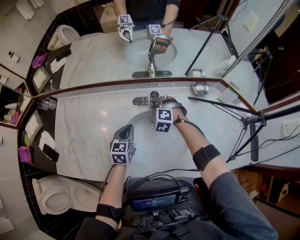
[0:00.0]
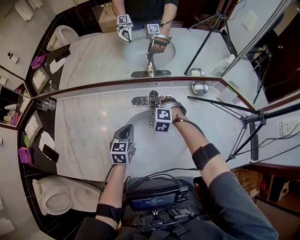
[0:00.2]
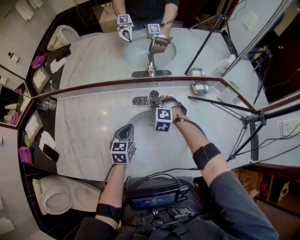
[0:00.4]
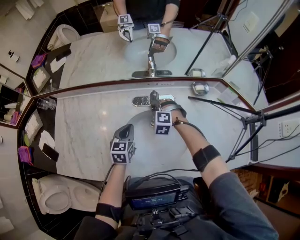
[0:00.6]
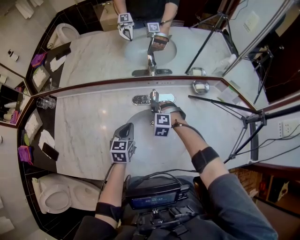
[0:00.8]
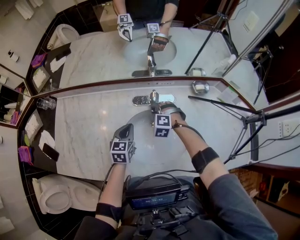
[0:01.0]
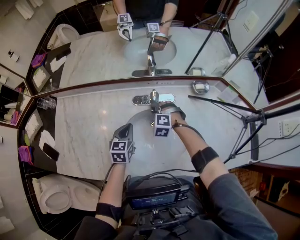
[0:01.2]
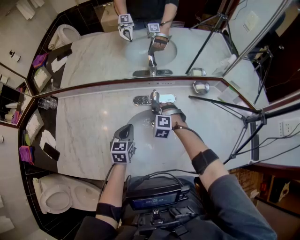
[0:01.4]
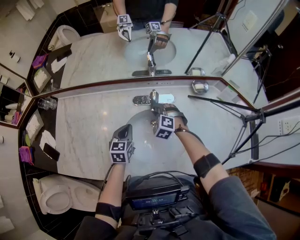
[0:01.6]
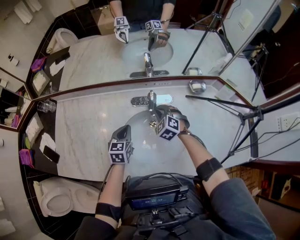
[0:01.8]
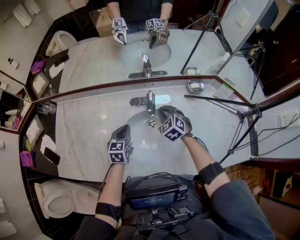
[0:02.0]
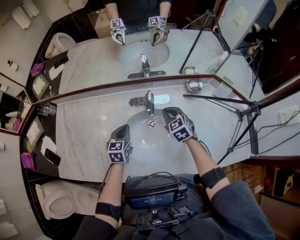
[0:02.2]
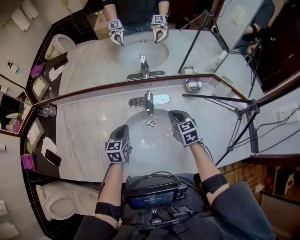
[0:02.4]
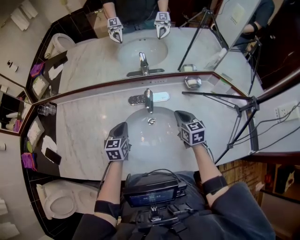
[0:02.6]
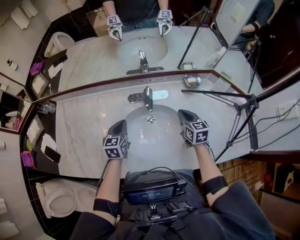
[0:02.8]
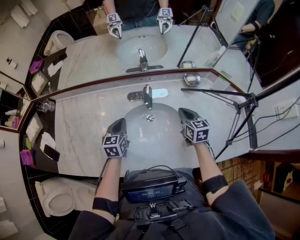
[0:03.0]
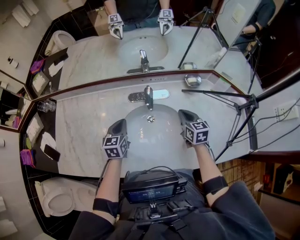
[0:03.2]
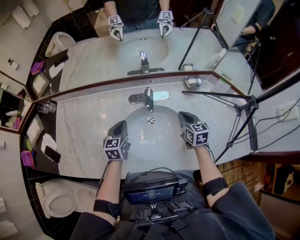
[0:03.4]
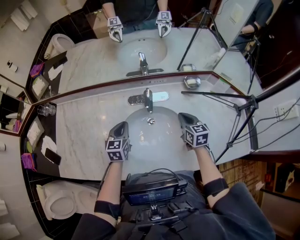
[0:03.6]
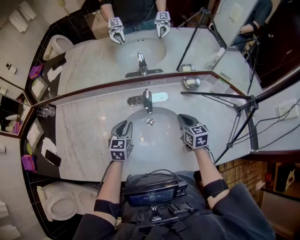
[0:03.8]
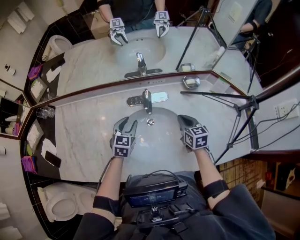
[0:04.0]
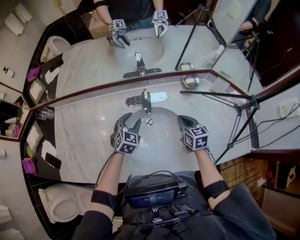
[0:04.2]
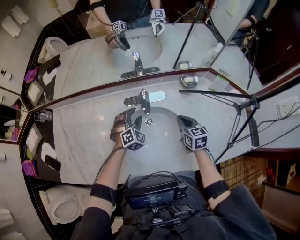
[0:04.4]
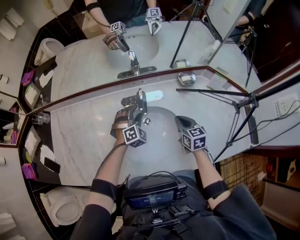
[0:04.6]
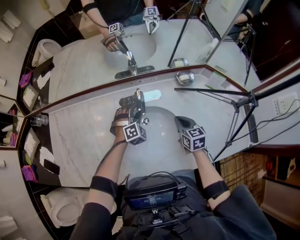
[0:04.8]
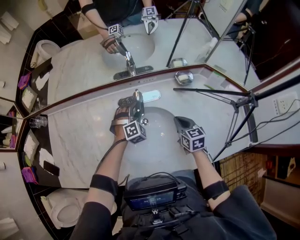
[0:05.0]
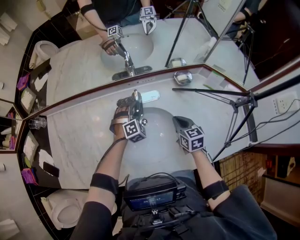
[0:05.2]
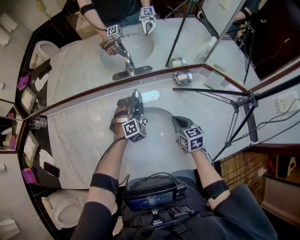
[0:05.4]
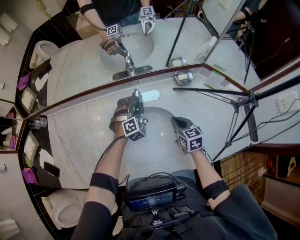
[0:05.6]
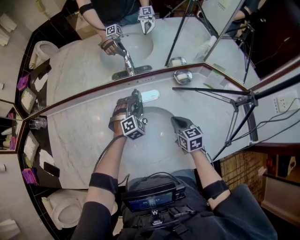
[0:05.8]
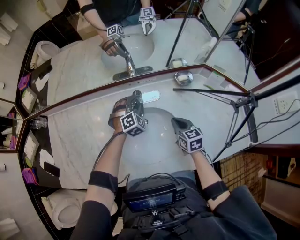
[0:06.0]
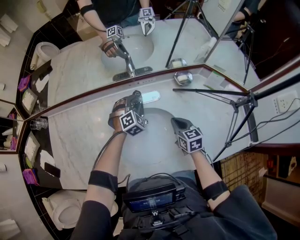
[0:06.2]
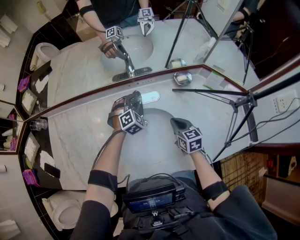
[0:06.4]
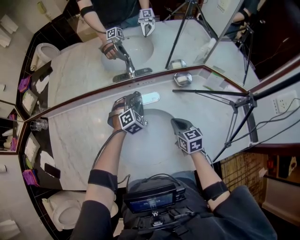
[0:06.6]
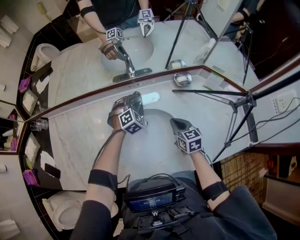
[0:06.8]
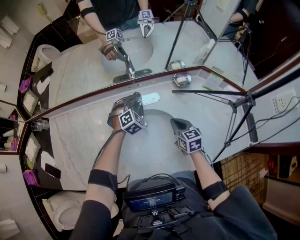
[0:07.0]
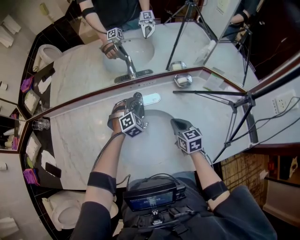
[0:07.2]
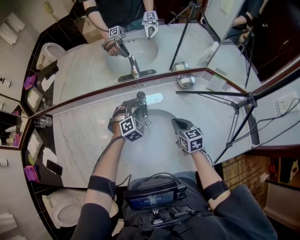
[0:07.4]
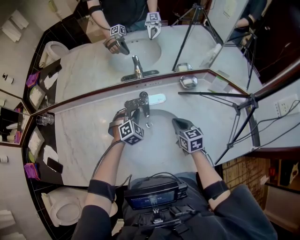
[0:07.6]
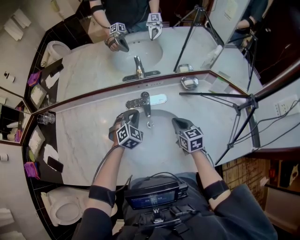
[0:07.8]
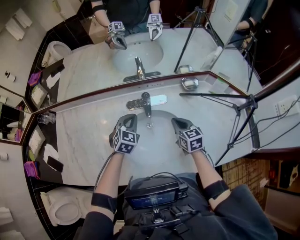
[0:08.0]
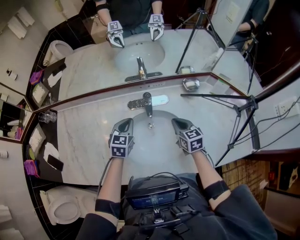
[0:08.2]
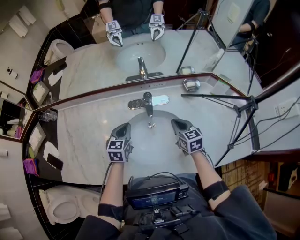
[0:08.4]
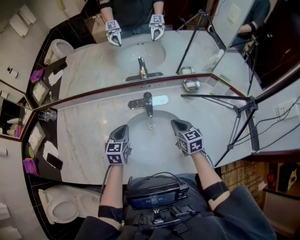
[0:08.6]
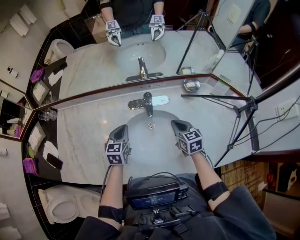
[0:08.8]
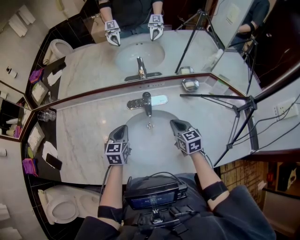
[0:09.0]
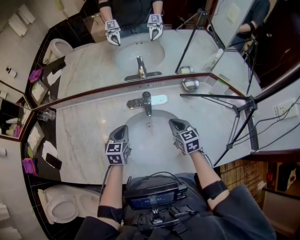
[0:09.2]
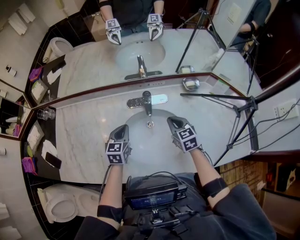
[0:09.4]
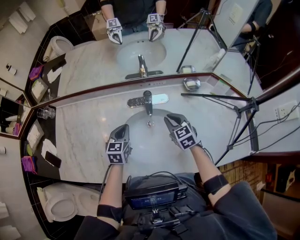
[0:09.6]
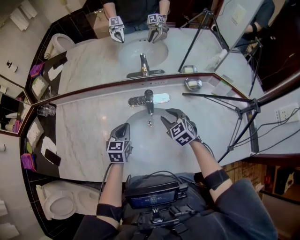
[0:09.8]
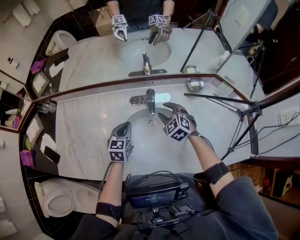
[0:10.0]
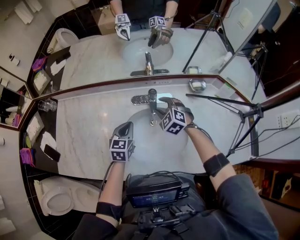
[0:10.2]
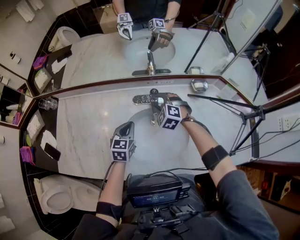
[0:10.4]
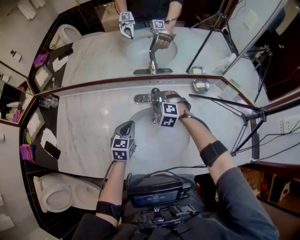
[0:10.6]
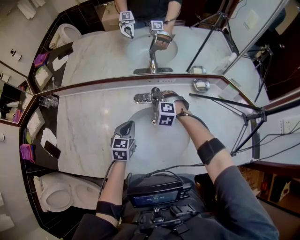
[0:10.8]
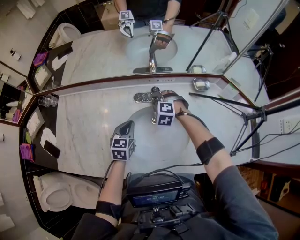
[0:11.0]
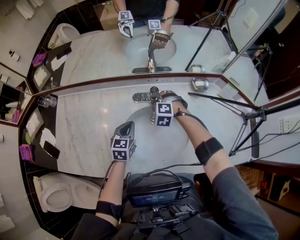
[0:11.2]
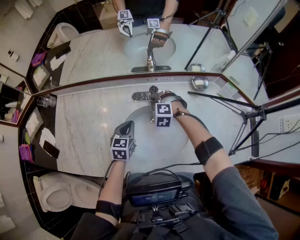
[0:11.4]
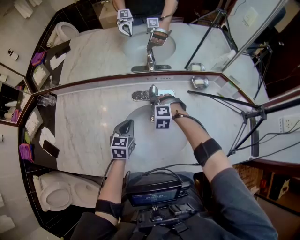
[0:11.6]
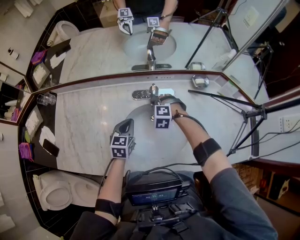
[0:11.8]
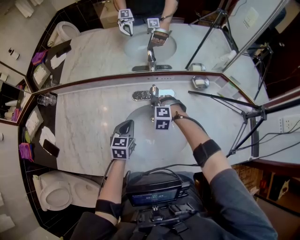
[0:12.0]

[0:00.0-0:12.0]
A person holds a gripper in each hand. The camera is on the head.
0:00.0 to 0:01.6: The grippers move only a little.
0:01.6 to 0:03.0: The right gripper goes some 20 cm to the right and backward, twists some 70 degrees clockwise, seen from behind, and closes.
0:03.0 to 0:04.4: The left gripper heads to the right and forward, covering about 10 cm, twists about 60 degrees clockwise, seen from behind, and opens.
0:04.4 to 0:06.0: The left gripper travels forward by about 5 cm.
0:06.0 to 0:07.6: The left gripper changes place by about 5 cm, and closes.
0:07.6 to 0:09.0: The left gripper moves to the left and backward, approximately 15 cm, and twists some 60 degrees counterclockwise, seen from behind.
0:09.0 to 0:10.4: The right gripper travels forward and to the left by roughly 15 cm, rolls counterclockwise, seen from behind, by approximately 60 degrees, and opens.
0:10.4 to 0:12.0: The right gripper moves downward, about 5 cm, and closes its fingers.

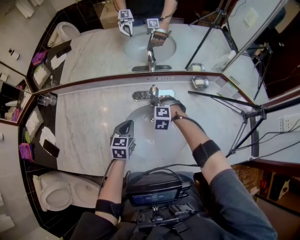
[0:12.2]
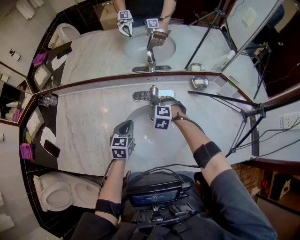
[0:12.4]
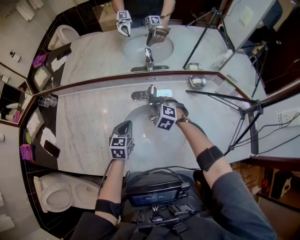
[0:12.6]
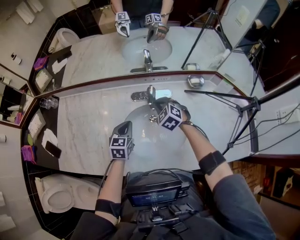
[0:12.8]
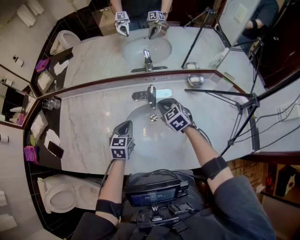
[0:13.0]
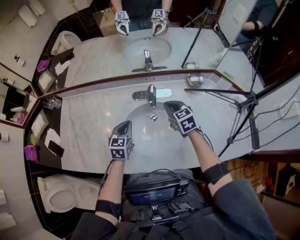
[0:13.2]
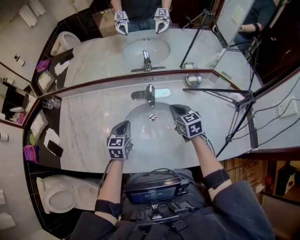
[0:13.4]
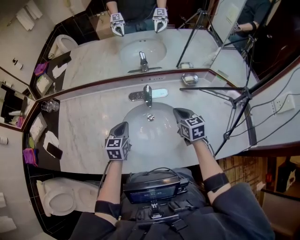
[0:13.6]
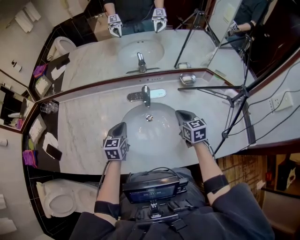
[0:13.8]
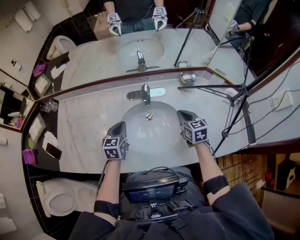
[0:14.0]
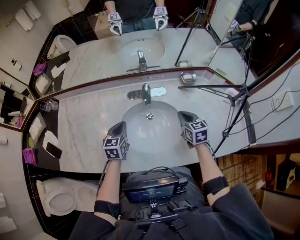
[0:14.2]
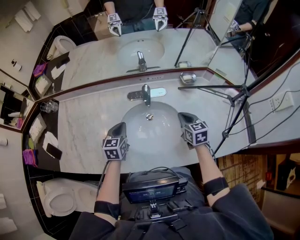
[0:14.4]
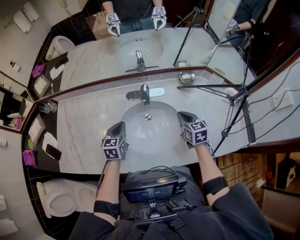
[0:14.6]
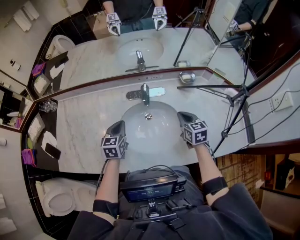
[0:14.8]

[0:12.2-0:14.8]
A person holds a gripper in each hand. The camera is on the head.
0:12.2 to 0:13.4: The right gripper heads upward, to the right and backward, covering roughly 15 cm, rolls clockwise, seen from behind, by roughly 70 degrees, and closes its fingers. Meanwhile the left gripper changes place by approximately 5 cm.
0:13.4 to 0:14.8: The right gripper goes about 10 cm to the right and backward.

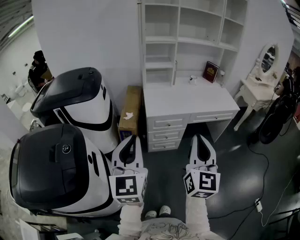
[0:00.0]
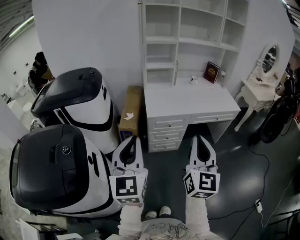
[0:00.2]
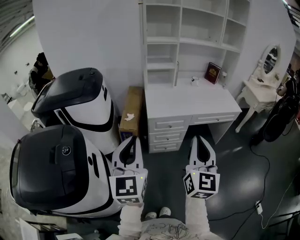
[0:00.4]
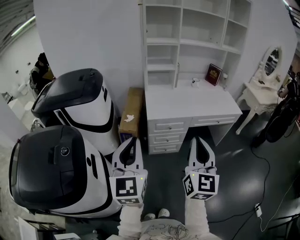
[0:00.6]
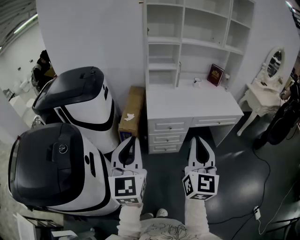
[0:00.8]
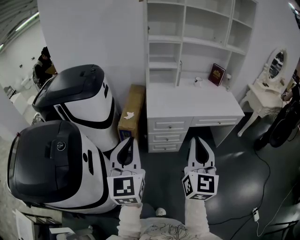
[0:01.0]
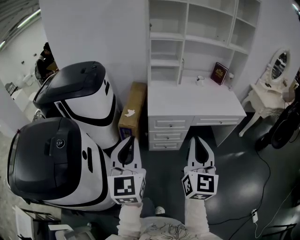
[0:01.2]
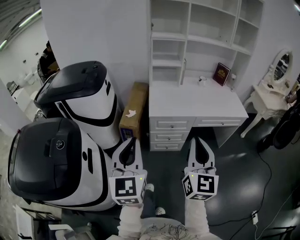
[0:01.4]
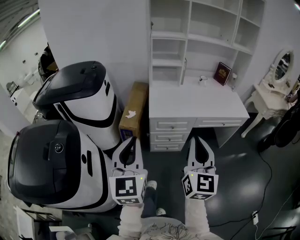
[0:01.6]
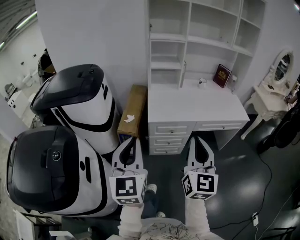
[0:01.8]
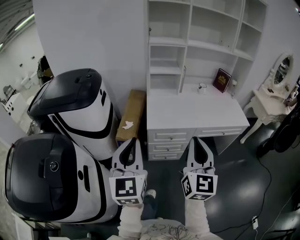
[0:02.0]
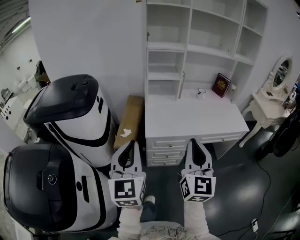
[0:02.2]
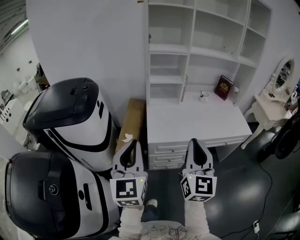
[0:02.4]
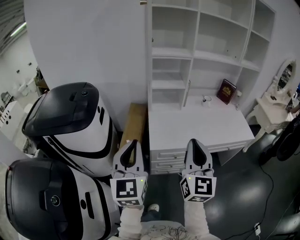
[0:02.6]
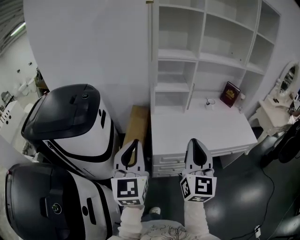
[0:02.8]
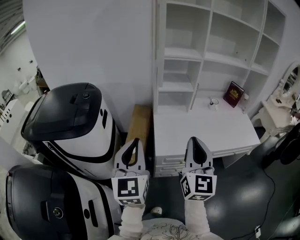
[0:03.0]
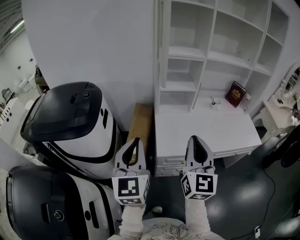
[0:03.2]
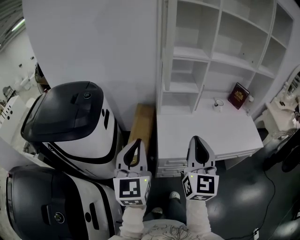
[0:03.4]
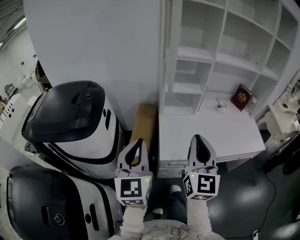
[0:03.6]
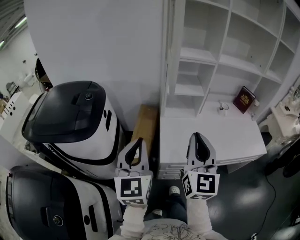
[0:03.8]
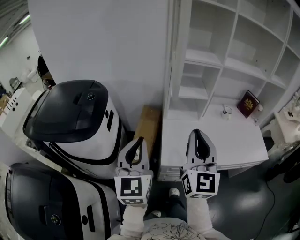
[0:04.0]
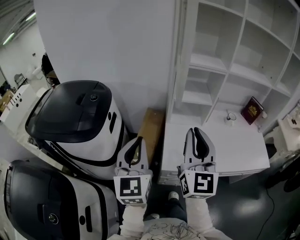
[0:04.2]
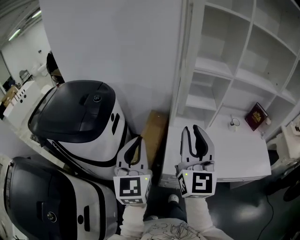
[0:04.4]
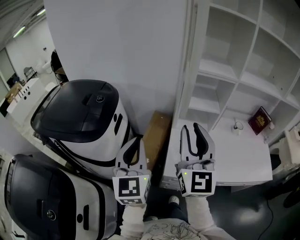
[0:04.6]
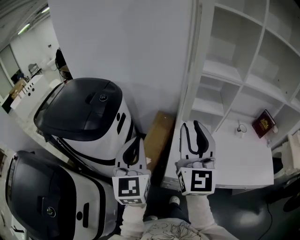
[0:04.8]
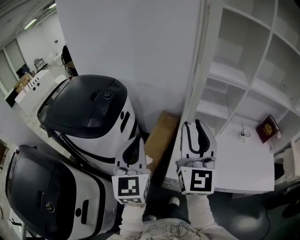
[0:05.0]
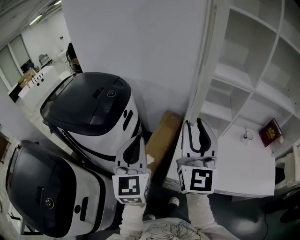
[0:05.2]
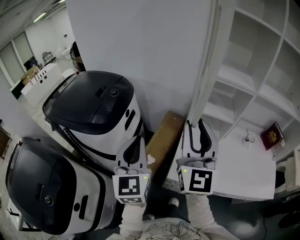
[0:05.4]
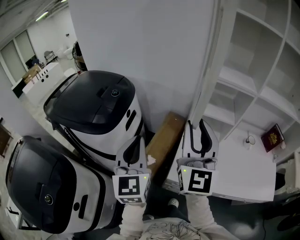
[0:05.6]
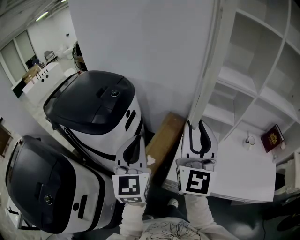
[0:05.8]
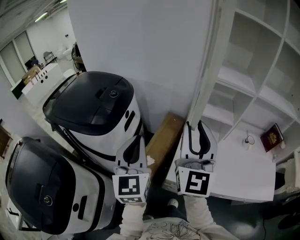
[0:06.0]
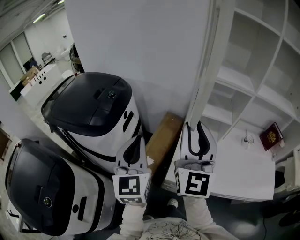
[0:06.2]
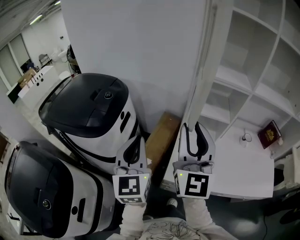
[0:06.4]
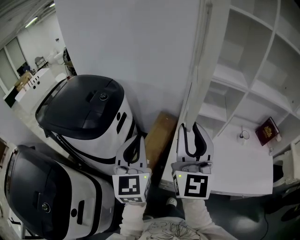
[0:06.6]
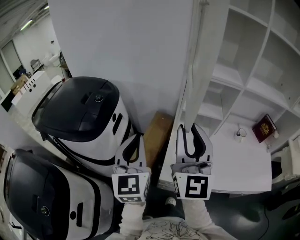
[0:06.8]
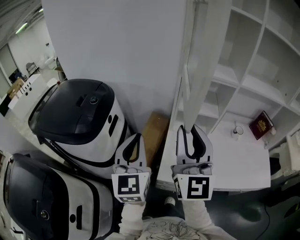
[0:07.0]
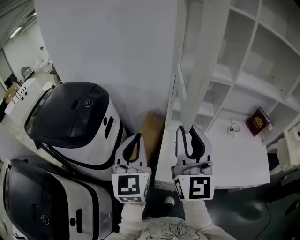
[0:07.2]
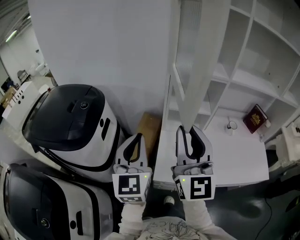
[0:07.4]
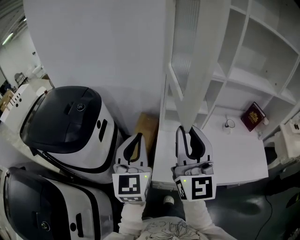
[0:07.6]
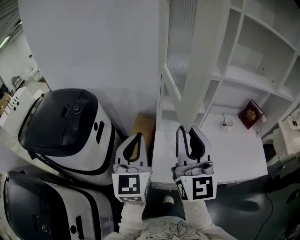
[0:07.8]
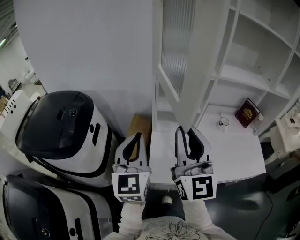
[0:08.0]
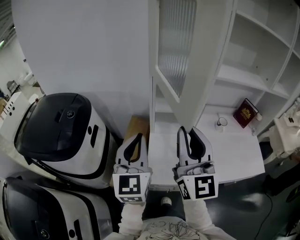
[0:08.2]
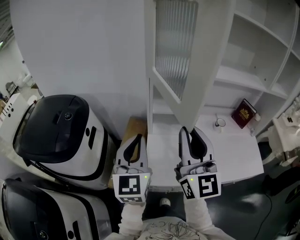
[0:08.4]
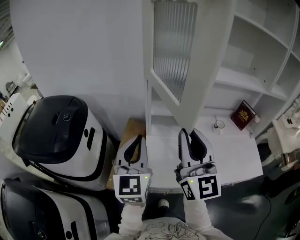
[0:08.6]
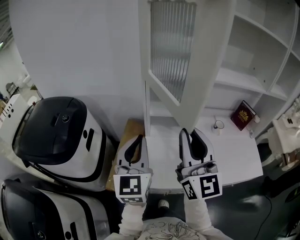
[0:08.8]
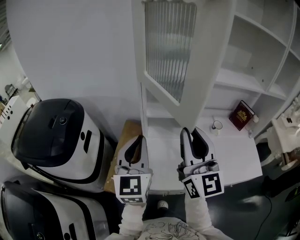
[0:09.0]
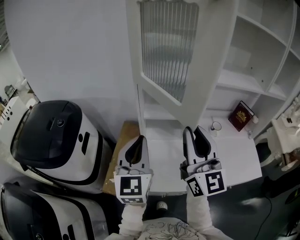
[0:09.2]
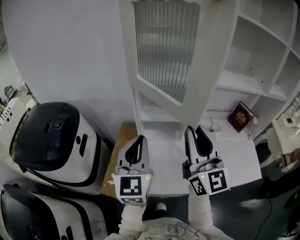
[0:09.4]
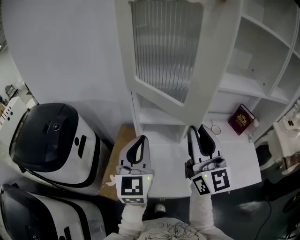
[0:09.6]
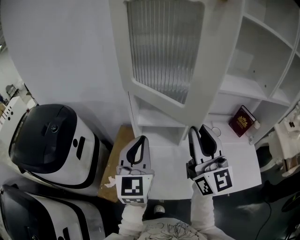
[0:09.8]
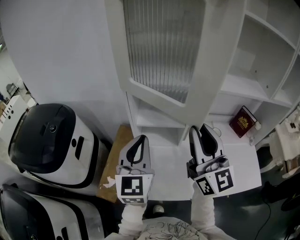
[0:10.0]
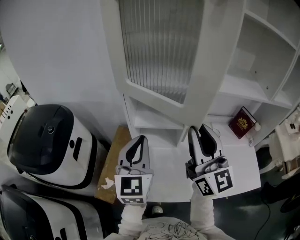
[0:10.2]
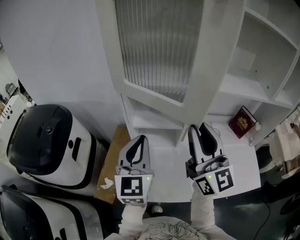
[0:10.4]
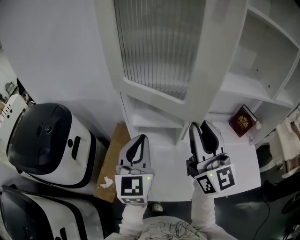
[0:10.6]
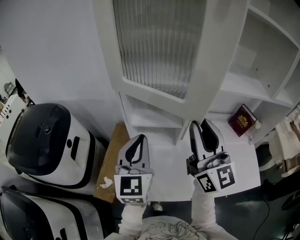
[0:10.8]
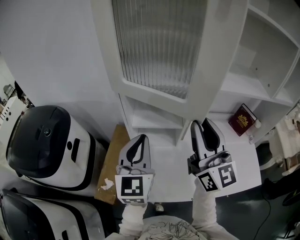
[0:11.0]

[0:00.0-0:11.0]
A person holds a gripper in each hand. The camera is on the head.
0:00.0 to 0:01.6: The grippers both shift forward by some 5 cm.
0:01.6 to 0:03.2: Both grippers move forward, about 30 cm.
0:03.2 to 0:04.8: The left gripper is displaced forward by about 10 cm, while the right gripper goes about 20 cm forward, upward and to the left, rotates approximately 20 degrees, and opens.
0:04.8 to 0:06.2: The grippers stay close to where they were, moving slightly.
0:06.2 to 0:07.8: Both grippers move to the right, some 10 cm.
0:07.8 to 0:09.4: Both grippers travel together to the right and forward, some 15 cm.
0:09.4 to 0:11.0: The two grippers go approximately 10 cm forward and to the right.
